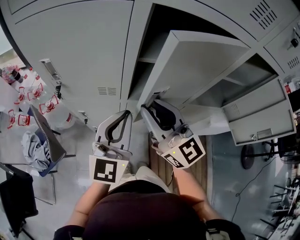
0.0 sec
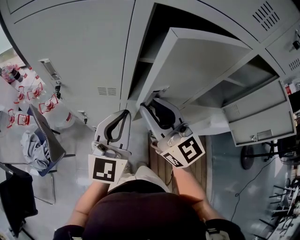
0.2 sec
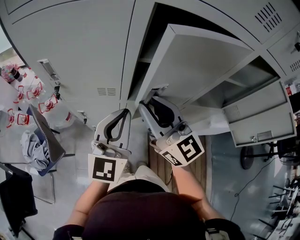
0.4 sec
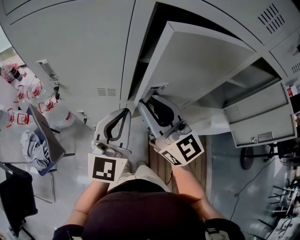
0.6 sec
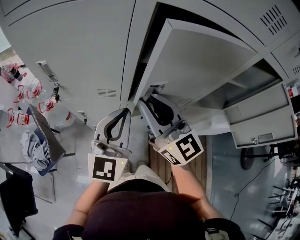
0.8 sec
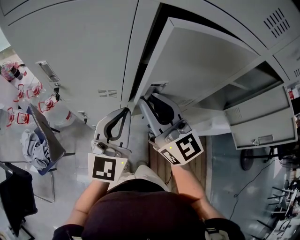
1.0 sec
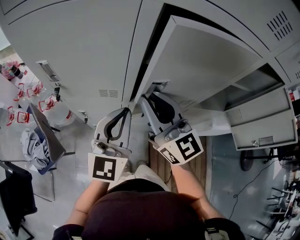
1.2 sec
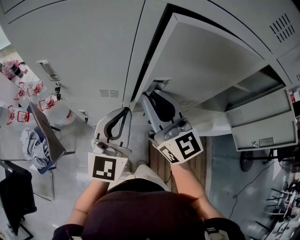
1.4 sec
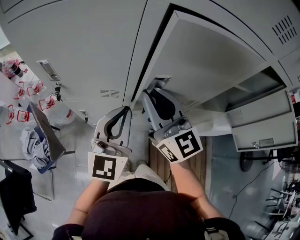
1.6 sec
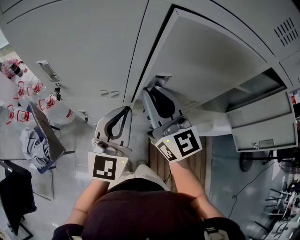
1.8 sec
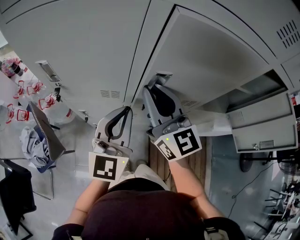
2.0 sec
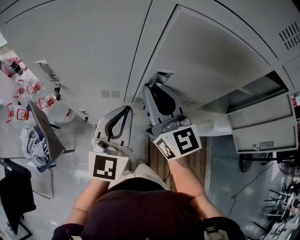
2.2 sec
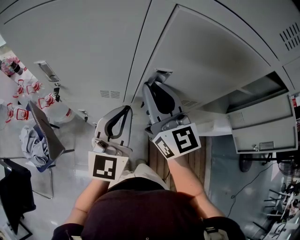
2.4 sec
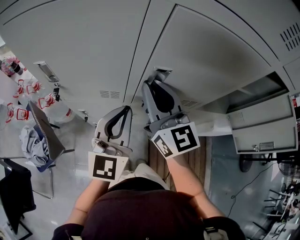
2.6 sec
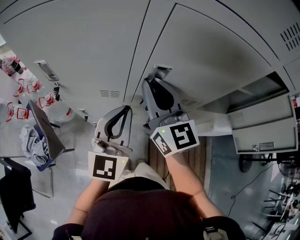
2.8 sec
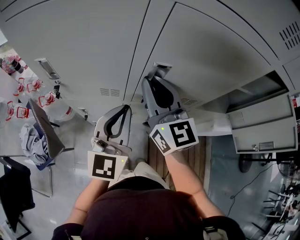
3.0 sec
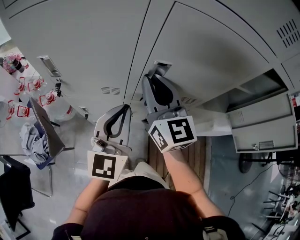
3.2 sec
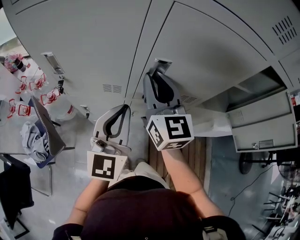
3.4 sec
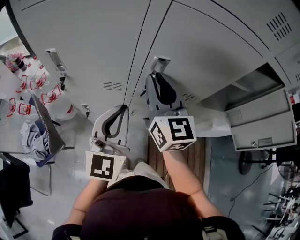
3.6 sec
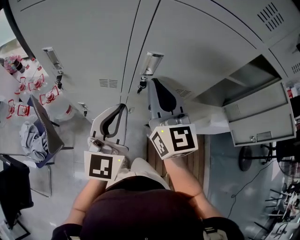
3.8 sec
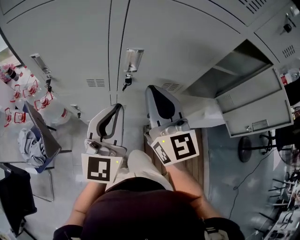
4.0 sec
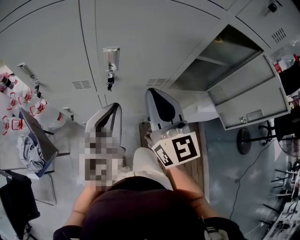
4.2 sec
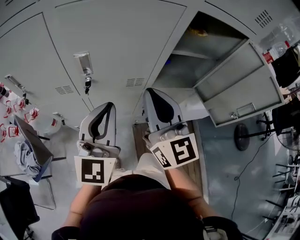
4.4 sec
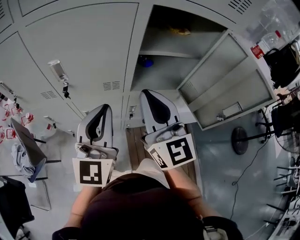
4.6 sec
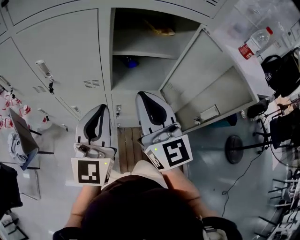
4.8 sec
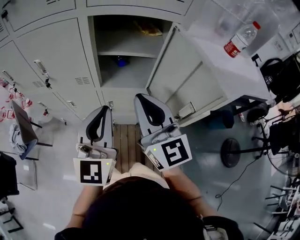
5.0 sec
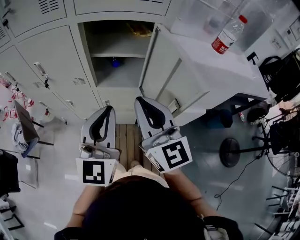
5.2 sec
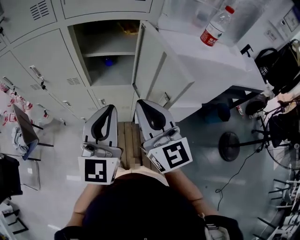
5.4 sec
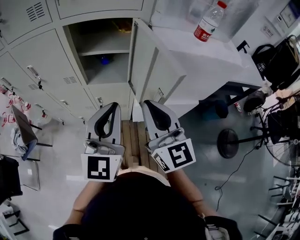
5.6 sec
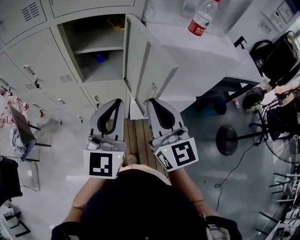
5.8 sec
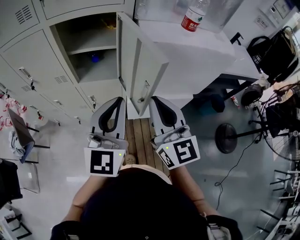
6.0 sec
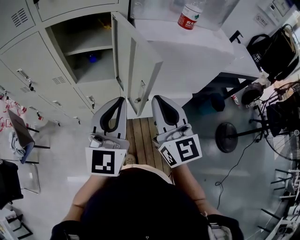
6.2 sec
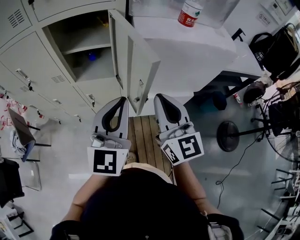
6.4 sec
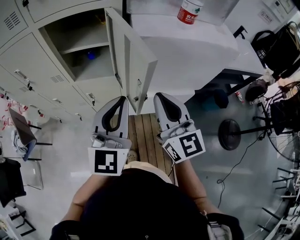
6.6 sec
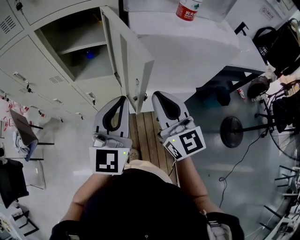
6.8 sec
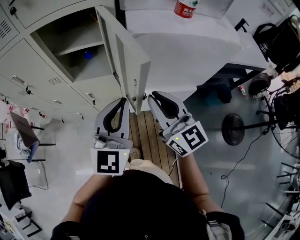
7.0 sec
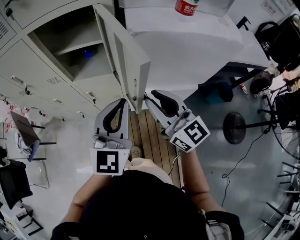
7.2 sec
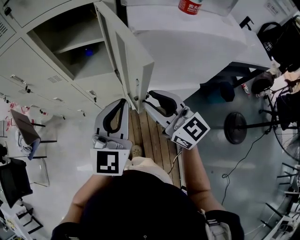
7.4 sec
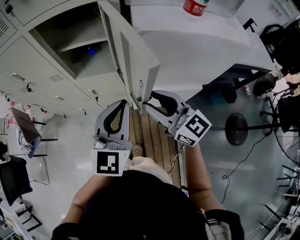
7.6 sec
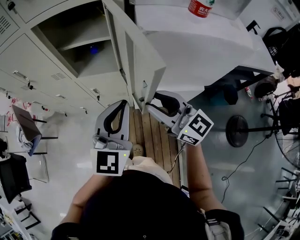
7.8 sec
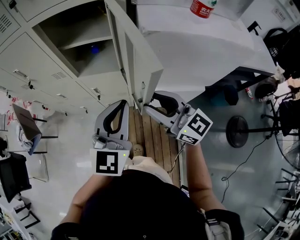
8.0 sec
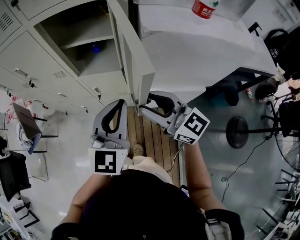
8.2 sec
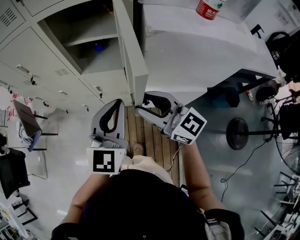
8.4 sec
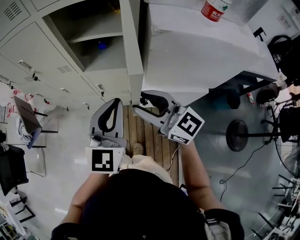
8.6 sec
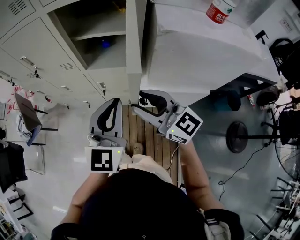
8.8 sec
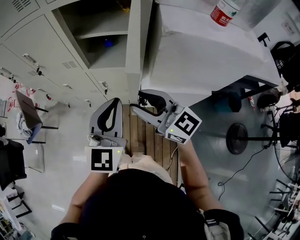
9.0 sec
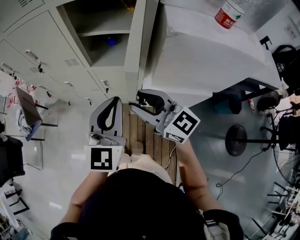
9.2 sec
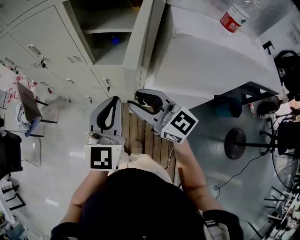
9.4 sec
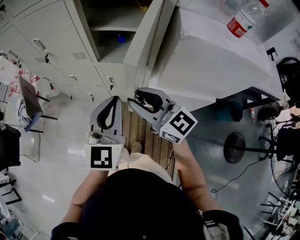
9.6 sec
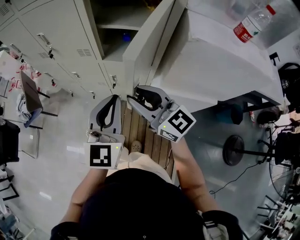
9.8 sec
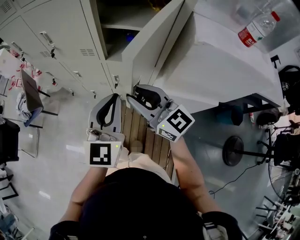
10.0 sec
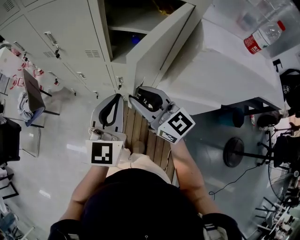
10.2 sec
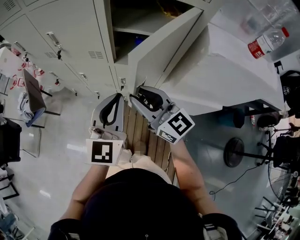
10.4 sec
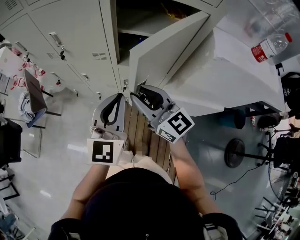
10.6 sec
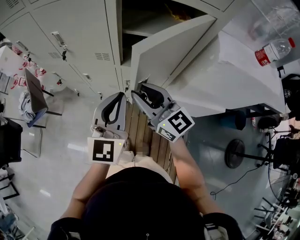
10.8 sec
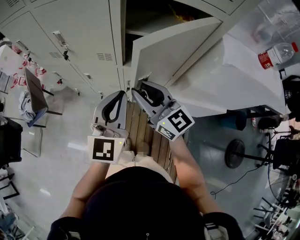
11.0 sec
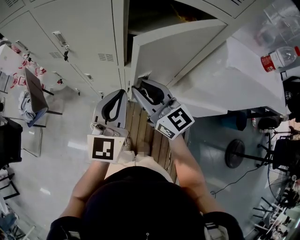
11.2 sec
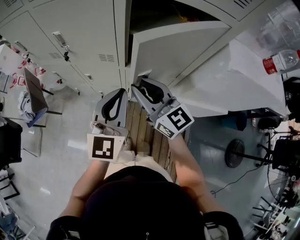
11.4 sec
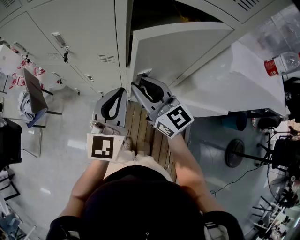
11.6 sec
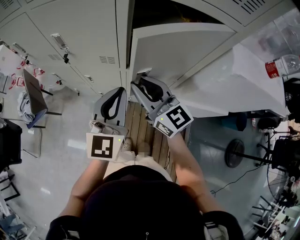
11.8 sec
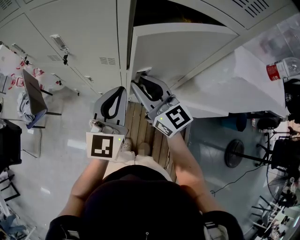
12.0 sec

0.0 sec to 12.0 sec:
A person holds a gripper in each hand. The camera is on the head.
0.0 sec to 1.6 sec: The right gripper heads forward, covering about 5 cm.
1.6 sec to 3.0 sec: The grippers stay close to where they were, moving slightly.
3.0 sec to 4.4 sec: The two grippers go about 20 cm to the right and backward.
4.4 sec to 6.0 sec: The two grippers travel together, to the right, about 50 cm.
6.0 sec to 7.6 sec: Both grippers travel together downward, about 10 cm. The right gripper swivels some 30 degrees, and opens its fingers.
7.6 sec to 9.0 sec: Both grippers travel together to the left, approximately 10 cm.
9.0 sec to 10.4 sec: Both grippers travel together to the left and forward, approximately 10 cm.
10.4 sec to 12.0 sec: The two grippers go some 10 cm forward.

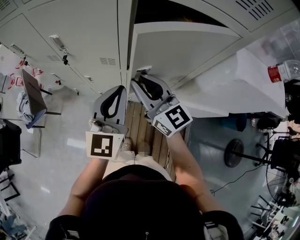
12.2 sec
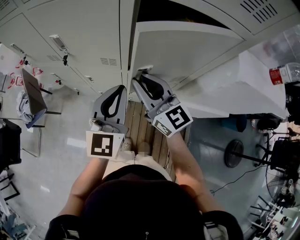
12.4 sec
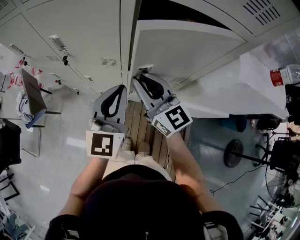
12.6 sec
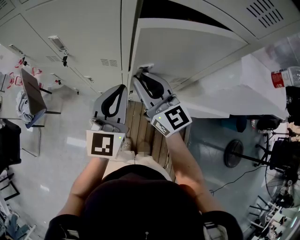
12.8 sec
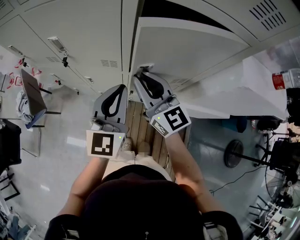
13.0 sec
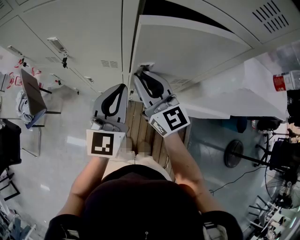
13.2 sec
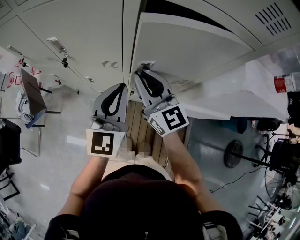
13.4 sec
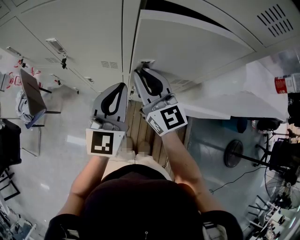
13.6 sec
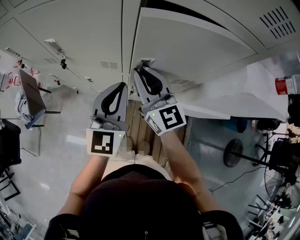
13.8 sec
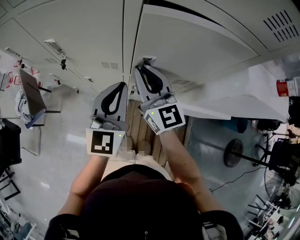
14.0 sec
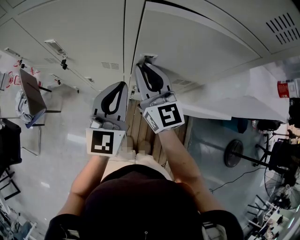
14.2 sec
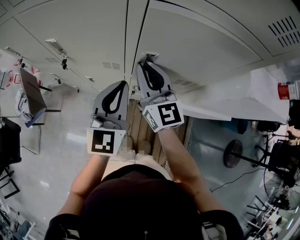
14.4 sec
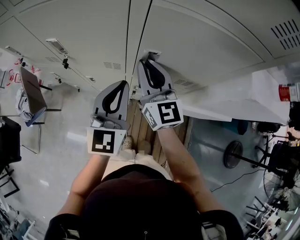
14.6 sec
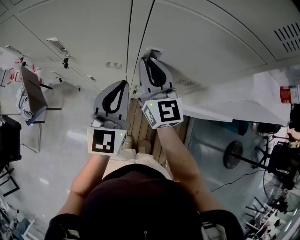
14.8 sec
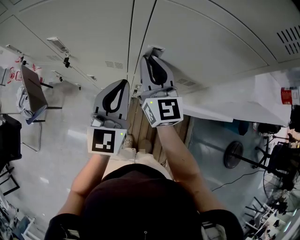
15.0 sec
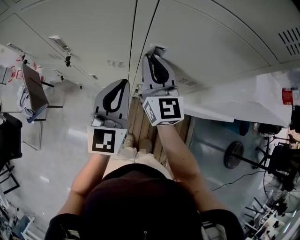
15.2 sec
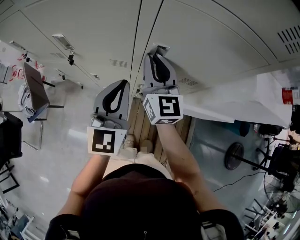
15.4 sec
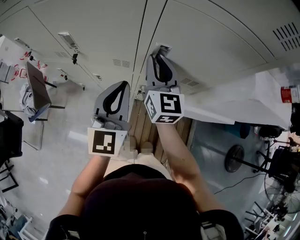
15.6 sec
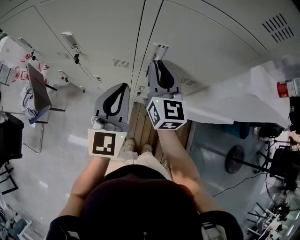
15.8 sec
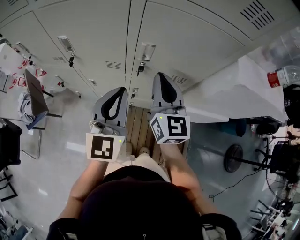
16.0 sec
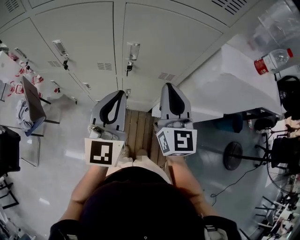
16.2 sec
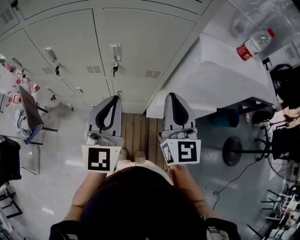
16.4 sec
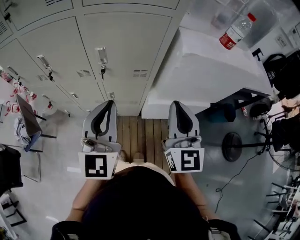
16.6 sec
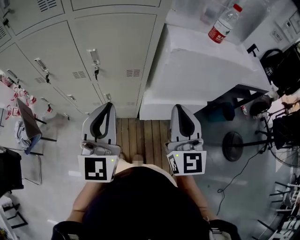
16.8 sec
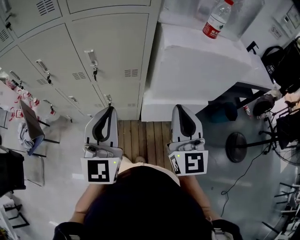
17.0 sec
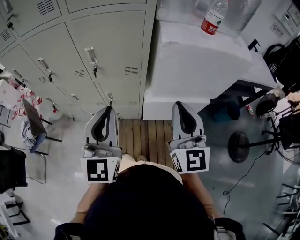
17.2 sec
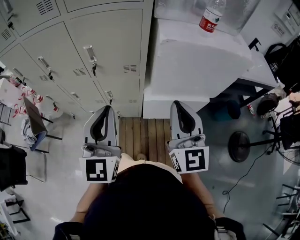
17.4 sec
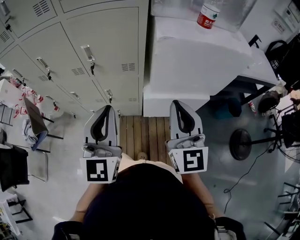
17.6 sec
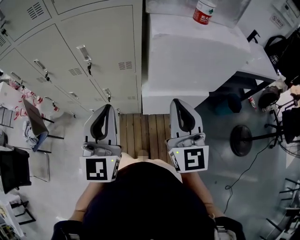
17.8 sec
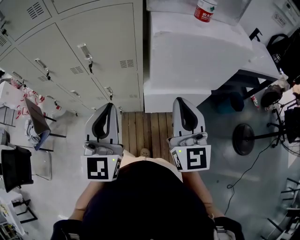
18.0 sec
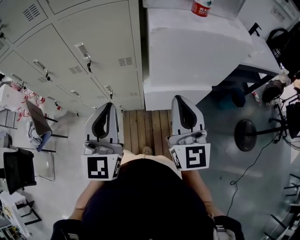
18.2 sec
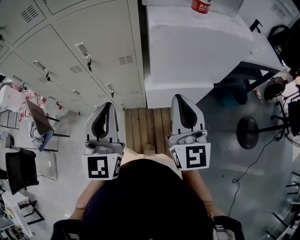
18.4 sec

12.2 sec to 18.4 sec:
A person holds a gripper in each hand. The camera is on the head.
12.2 sec to 13.8 sec: The right gripper heads forward, covering some 5 cm.
13.8 sec to 15.4 sec: The right gripper shifts some 5 cm forward.
15.4 sec to 16.8 sec: The right gripper shifts approximately 40 cm to the right and backward, and swivels approximately 20 degrees; the left gripper shifts approximately 25 cm backward, to the right and upward.
16.8 sec to 18.4 sec: The two grippers go some 5 cm to the right.

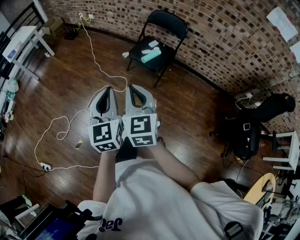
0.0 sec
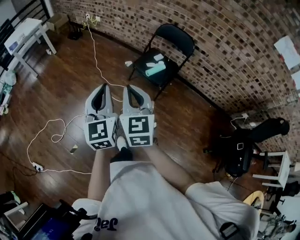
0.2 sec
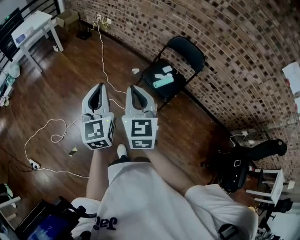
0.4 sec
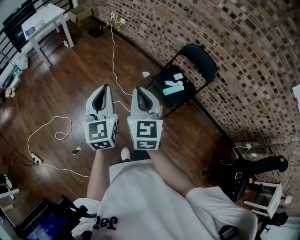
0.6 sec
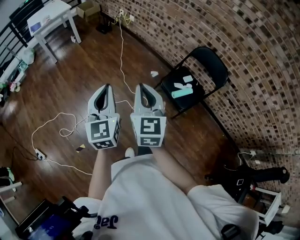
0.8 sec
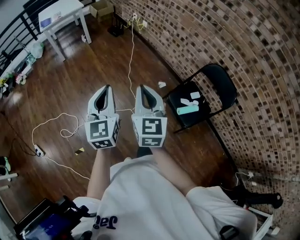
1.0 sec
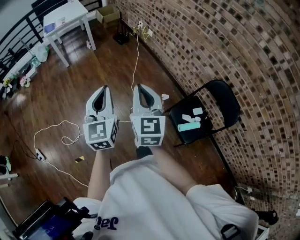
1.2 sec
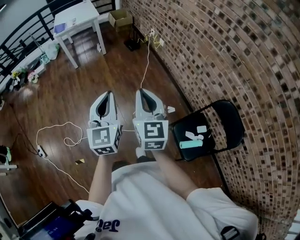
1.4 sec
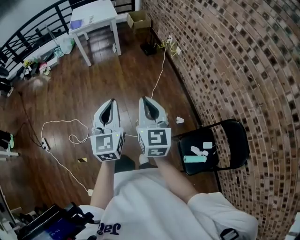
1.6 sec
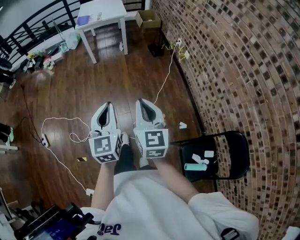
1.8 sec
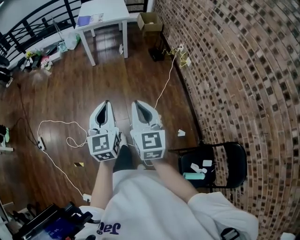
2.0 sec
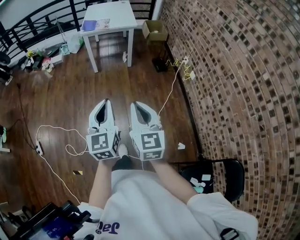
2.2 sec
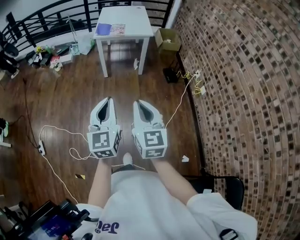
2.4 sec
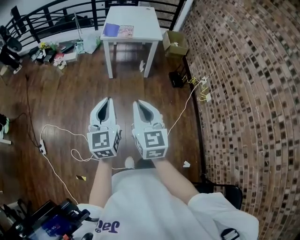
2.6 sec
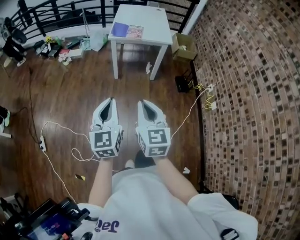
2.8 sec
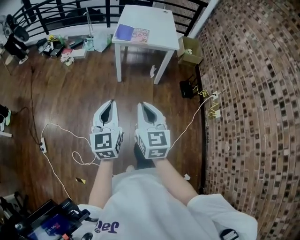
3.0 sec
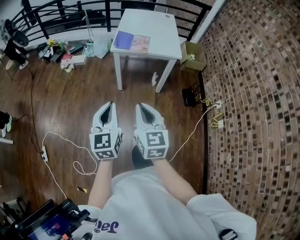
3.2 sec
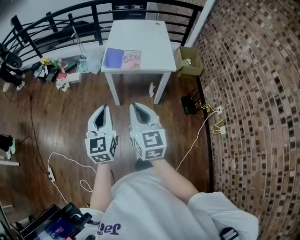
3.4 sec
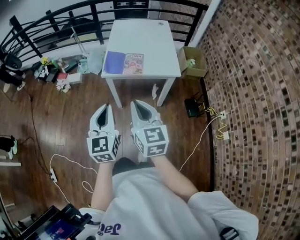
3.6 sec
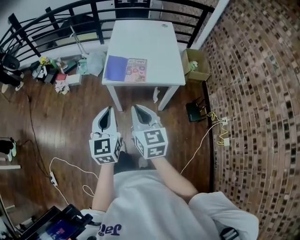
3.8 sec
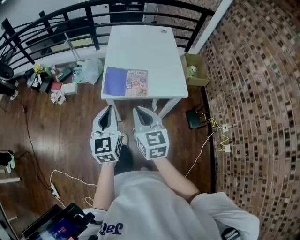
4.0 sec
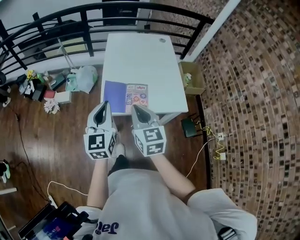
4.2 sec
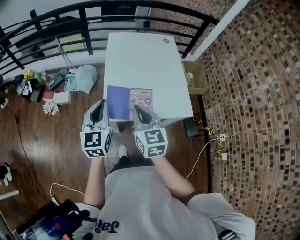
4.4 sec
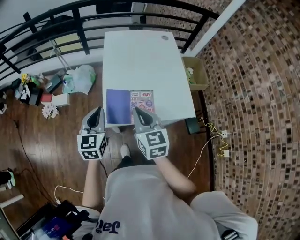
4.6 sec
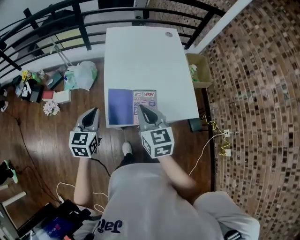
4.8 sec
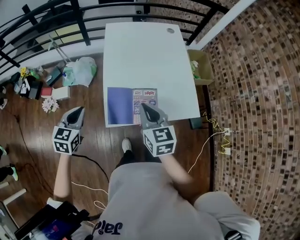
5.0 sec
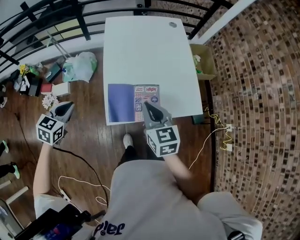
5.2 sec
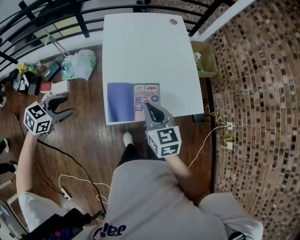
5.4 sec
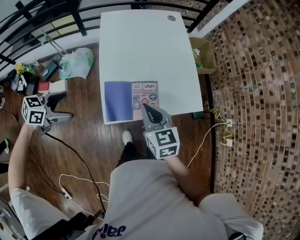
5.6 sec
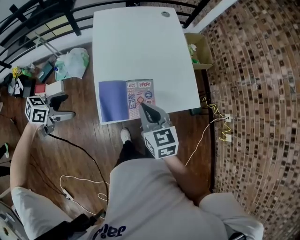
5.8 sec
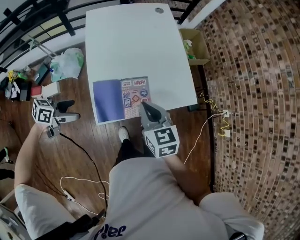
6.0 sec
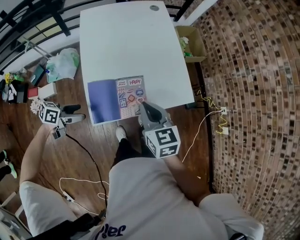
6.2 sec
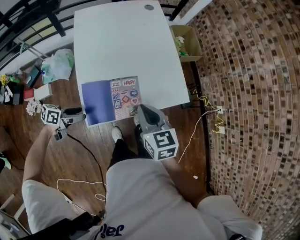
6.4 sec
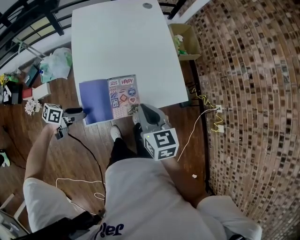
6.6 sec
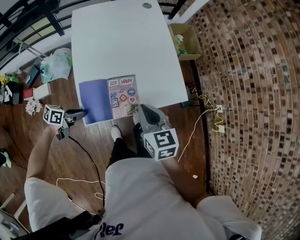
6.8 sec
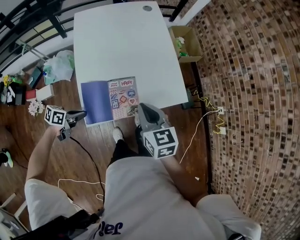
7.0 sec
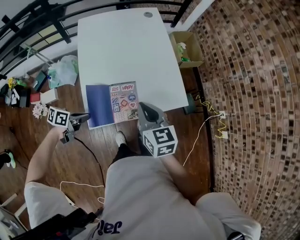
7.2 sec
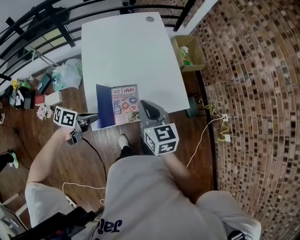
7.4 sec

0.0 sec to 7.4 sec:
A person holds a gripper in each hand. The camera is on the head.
0.0 sec to 1.4 sec: Both grippers are carried approximately 60 cm. The left gripper changes its angle by some 30 degrees; the right gripper changes its angle by some 30 degrees.
1.4 sec to 3.0 sec: The pair of grippers is taken roughly 60 cm. The right gripper swivels approximately 30 degrees, while the left gripper turns by roughly 30 degrees.
3.0 sec to 4.4 sec: The pair of grippers is taken forward, about 70 cm.
4.4 sec to 6.0 sec: The right gripper ends up about 15 cm from where it was; the left gripper moves downward, about 20 cm, changes its angle by some 80 degrees, and opens up.
6.0 sec to 7.4 sec: The left gripper travels to the right by approximately 10 cm, and closes. The right gripper moves roughly 5 cm.
